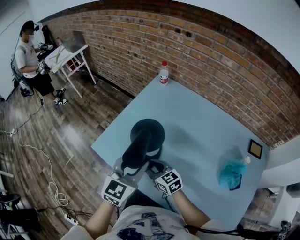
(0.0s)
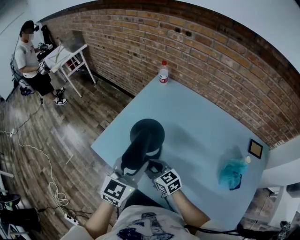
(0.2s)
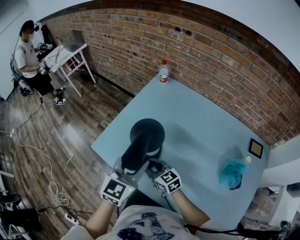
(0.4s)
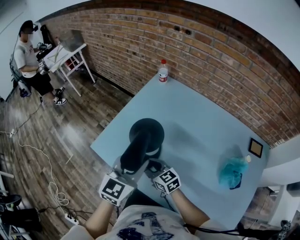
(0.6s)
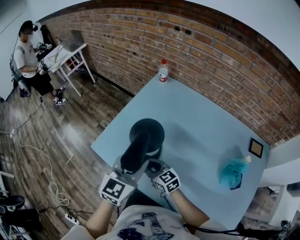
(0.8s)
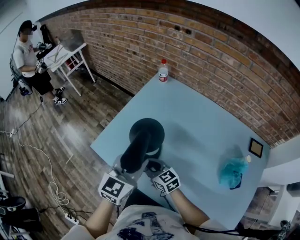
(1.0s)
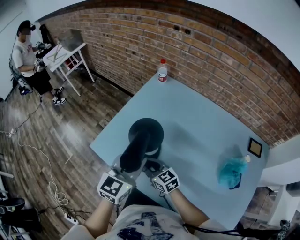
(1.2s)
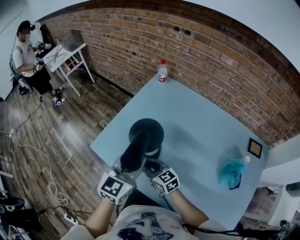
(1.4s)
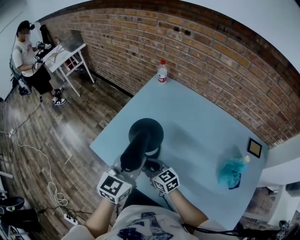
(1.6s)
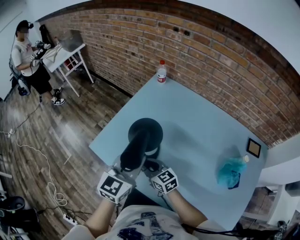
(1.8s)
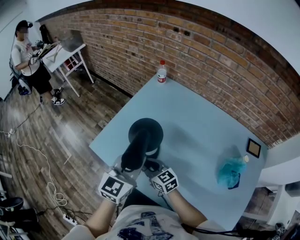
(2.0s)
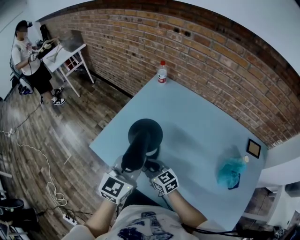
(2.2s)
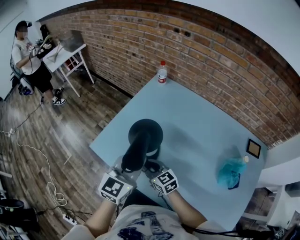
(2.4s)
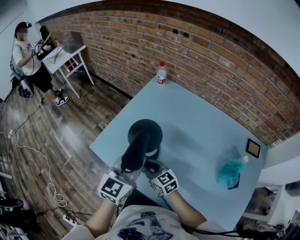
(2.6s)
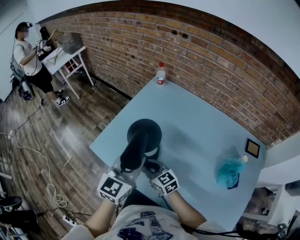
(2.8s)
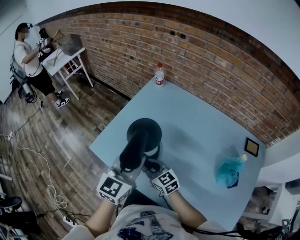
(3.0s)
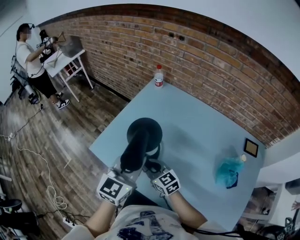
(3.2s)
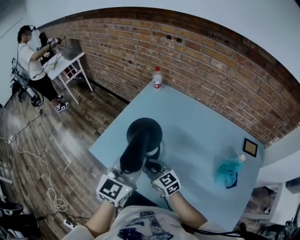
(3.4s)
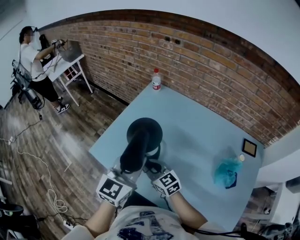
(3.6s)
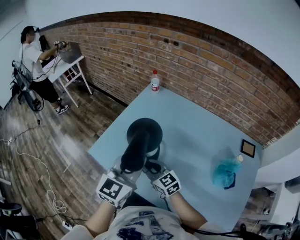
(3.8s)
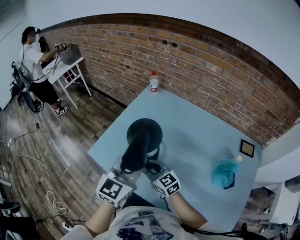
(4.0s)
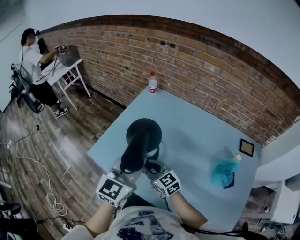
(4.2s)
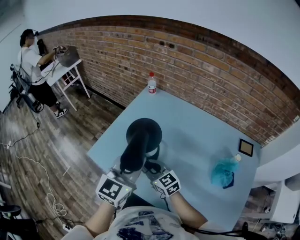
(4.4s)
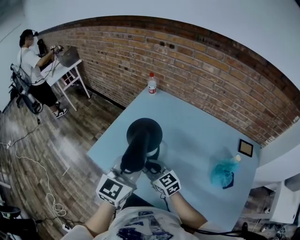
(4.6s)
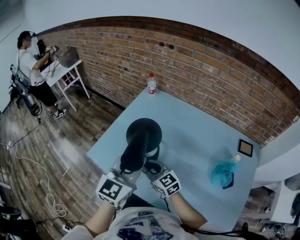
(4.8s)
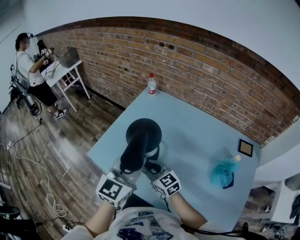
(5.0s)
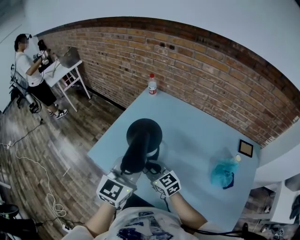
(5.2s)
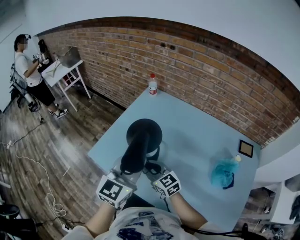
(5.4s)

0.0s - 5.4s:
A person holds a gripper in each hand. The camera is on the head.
0.0s - 2.8s: The grippers make only small movements.
2.8s - 4.0s: The right gripper goes about 5 cm upward; the left gripper moves some 5 cm.
4.0s - 5.4s: The grippers move only a little.

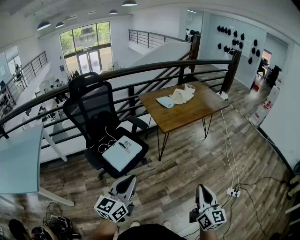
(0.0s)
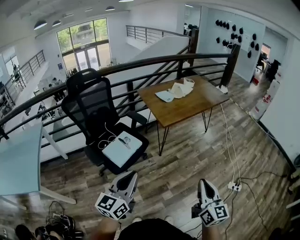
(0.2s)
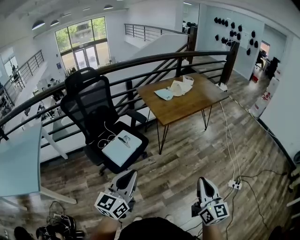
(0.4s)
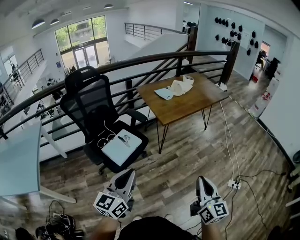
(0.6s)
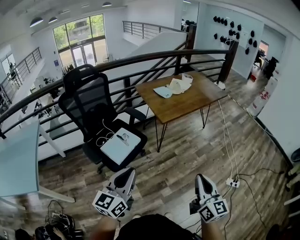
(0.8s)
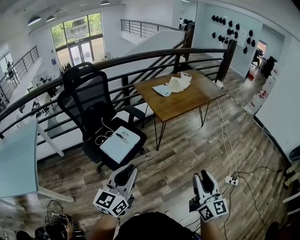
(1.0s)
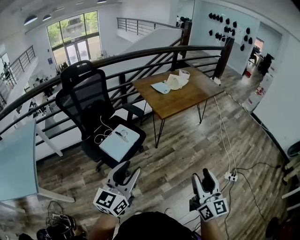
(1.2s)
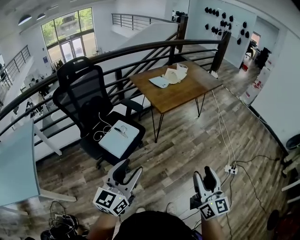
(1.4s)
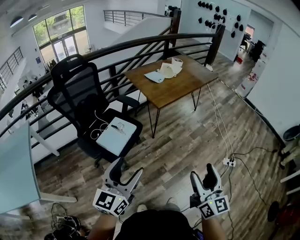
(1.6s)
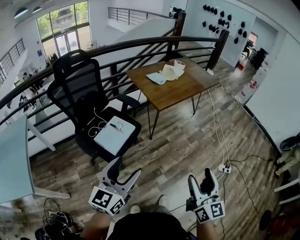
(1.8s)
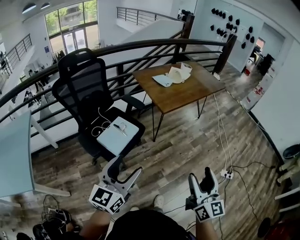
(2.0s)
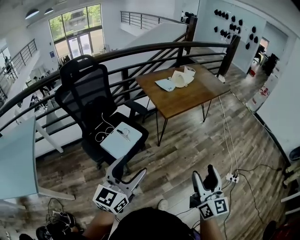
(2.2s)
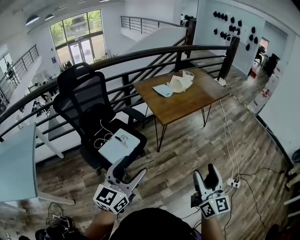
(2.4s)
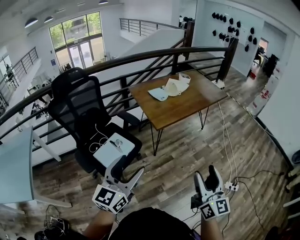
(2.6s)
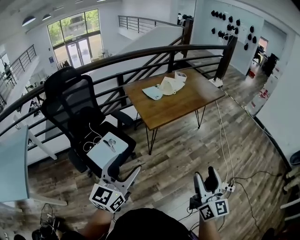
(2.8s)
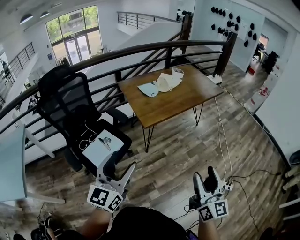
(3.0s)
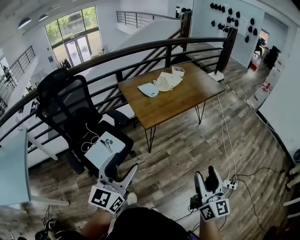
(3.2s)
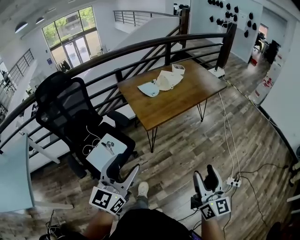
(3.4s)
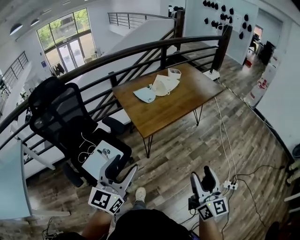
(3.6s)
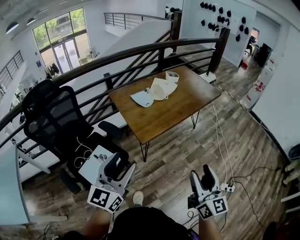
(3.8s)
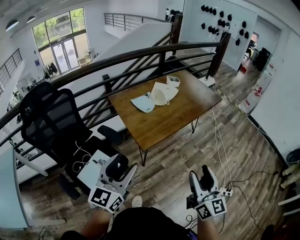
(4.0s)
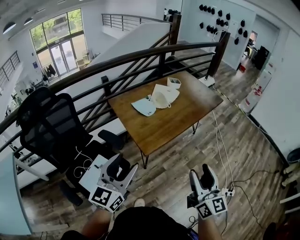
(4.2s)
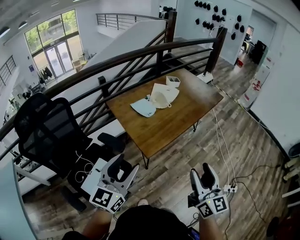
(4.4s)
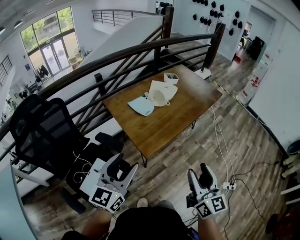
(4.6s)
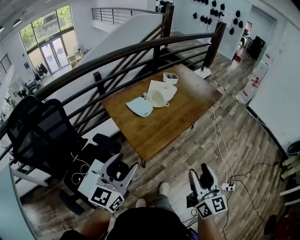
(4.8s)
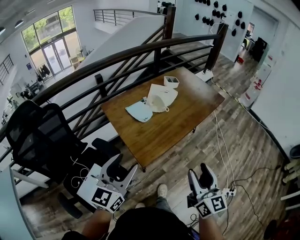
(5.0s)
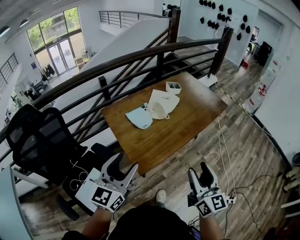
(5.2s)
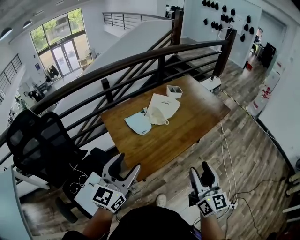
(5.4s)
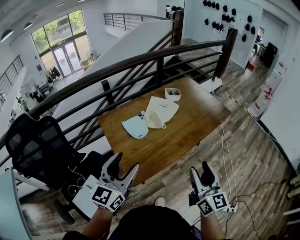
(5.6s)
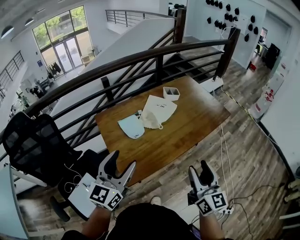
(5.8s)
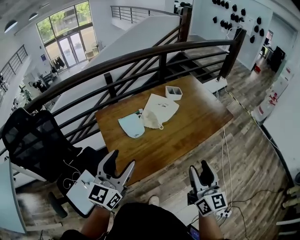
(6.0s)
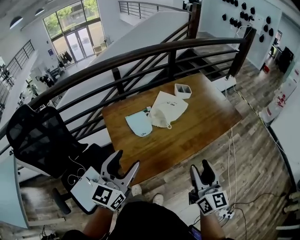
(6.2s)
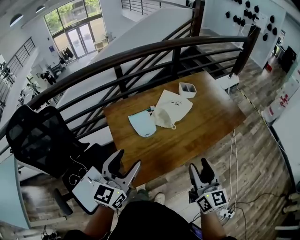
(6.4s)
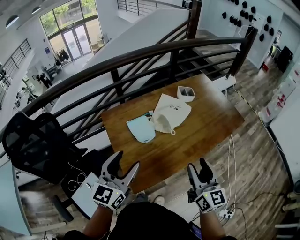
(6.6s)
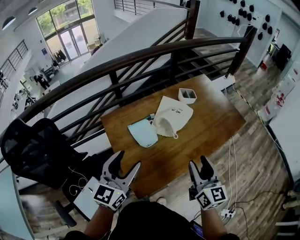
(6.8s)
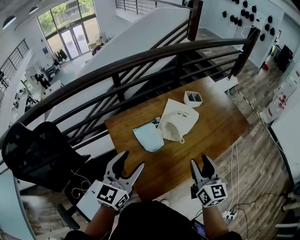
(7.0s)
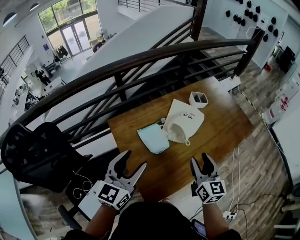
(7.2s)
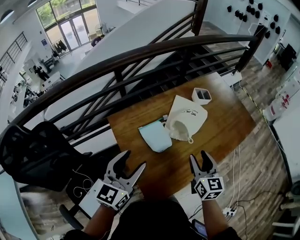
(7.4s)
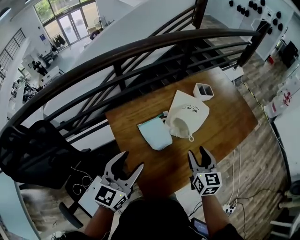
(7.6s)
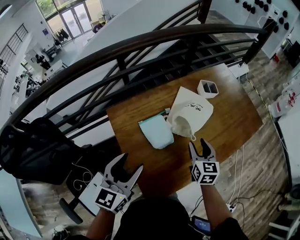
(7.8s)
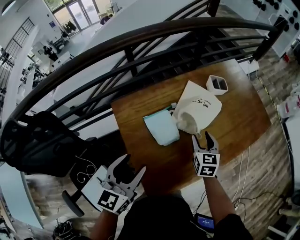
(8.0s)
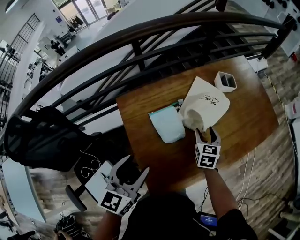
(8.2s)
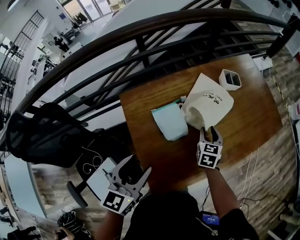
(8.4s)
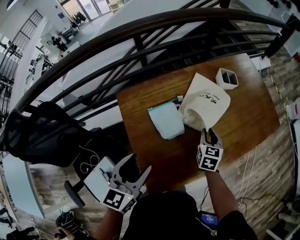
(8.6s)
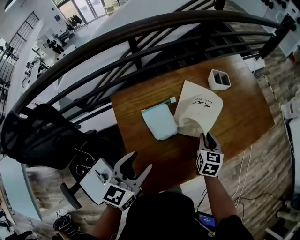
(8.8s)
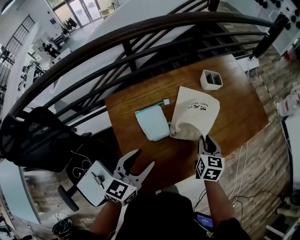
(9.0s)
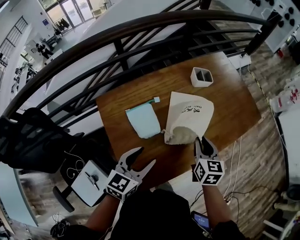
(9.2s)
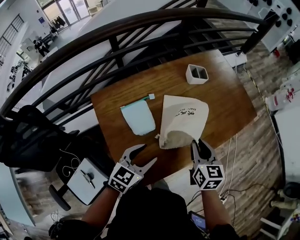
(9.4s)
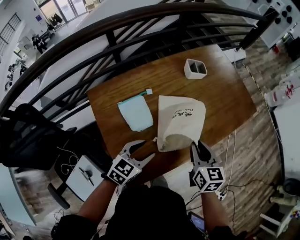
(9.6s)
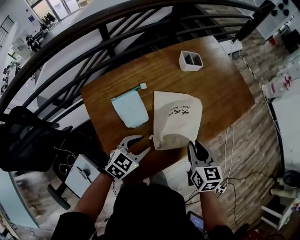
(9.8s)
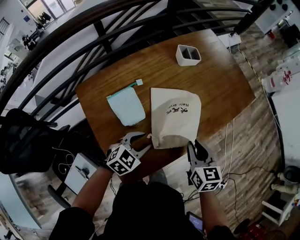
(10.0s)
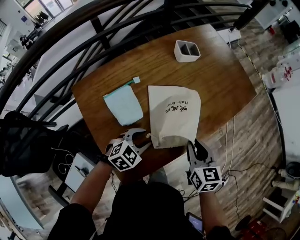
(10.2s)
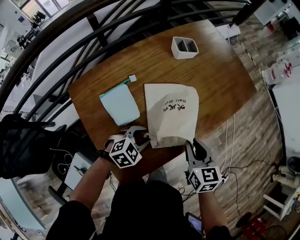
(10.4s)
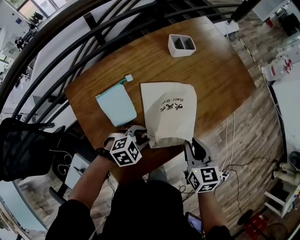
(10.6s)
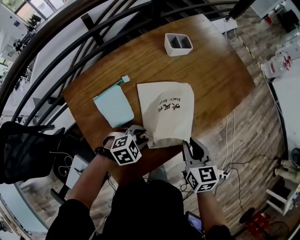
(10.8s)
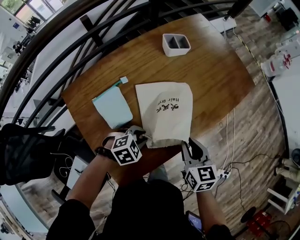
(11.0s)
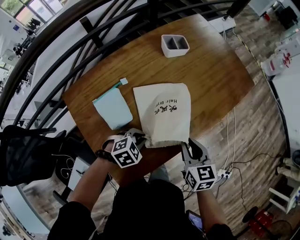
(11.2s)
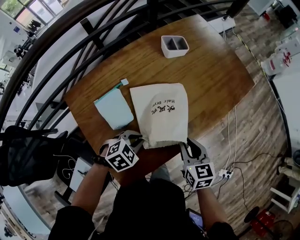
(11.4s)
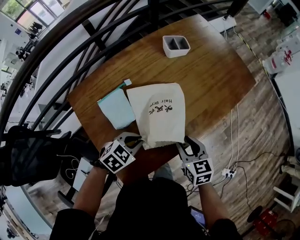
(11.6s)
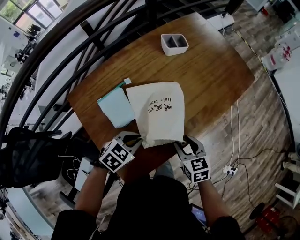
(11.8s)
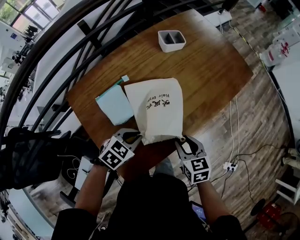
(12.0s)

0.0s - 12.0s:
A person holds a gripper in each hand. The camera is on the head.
0.0s - 1.6s: Both grippers move to the left, some 5 cm. The right gripper opens its fingers, while the left gripper opens its fingers.
1.6s - 3.0s: The grippers both shift forward and to the right by about 25 cm.
3.0s - 4.4s: The left gripper goes about 25 cm forward; the right gripper moves forward and to the left, some 25 cm.
4.4s - 6.0s: Both grippers move forward and to the right, about 25 cm.
6.0s - 7.6s: Both grippers travel together forward, to the left and downward, roughly 25 cm. The right gripper turns by about 20 degrees.
7.6s - 9.0s: The right gripper heads to the right, downward and forward, covering about 10 cm, and closes up. Meanwhile the left gripper goes roughly 10 cm to the right and downward.
9.0s - 10.4s: The right gripper goes some 10 cm backward and to the right; the left gripper travels downward and to the right by about 20 cm, and tips its fingers downward by approximately 30 degrees.
10.4s - 12.0s: The right gripper is displaced downward by approximately 5 cm.

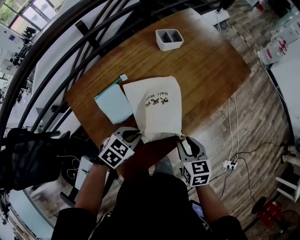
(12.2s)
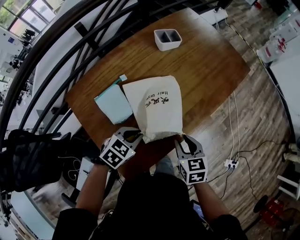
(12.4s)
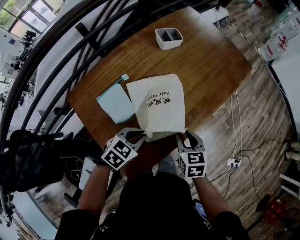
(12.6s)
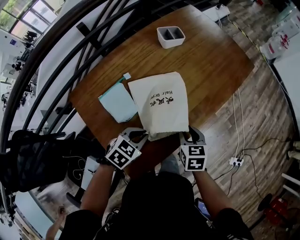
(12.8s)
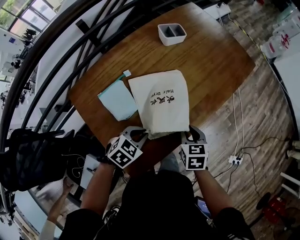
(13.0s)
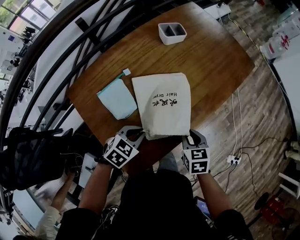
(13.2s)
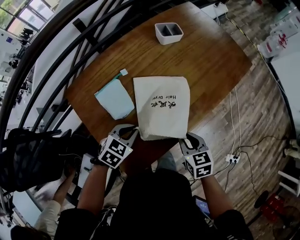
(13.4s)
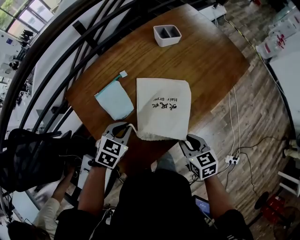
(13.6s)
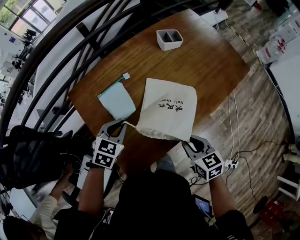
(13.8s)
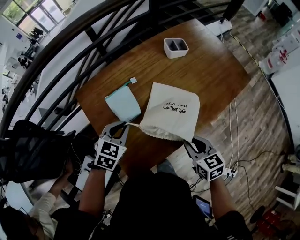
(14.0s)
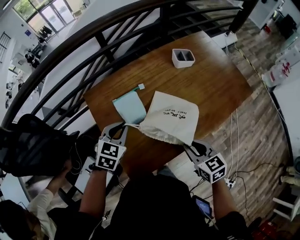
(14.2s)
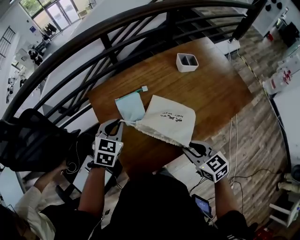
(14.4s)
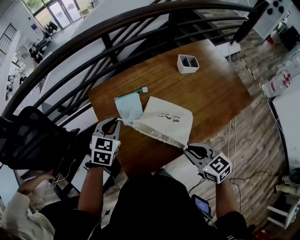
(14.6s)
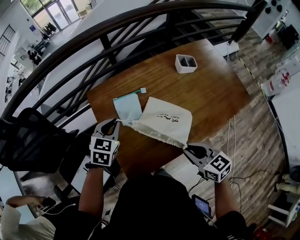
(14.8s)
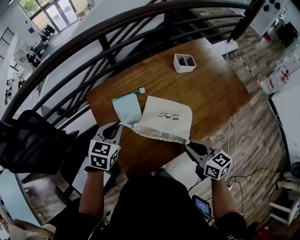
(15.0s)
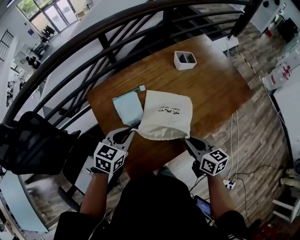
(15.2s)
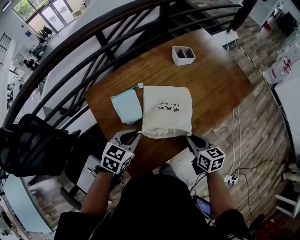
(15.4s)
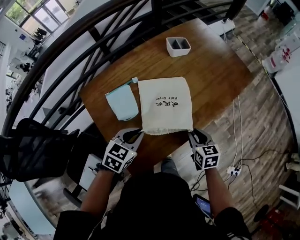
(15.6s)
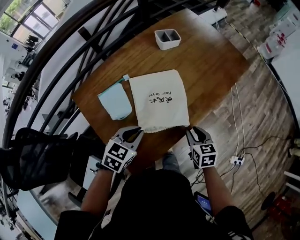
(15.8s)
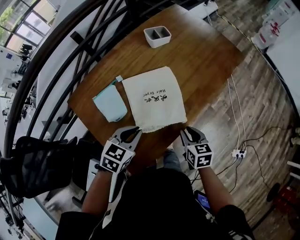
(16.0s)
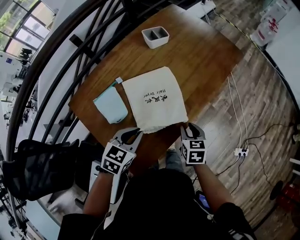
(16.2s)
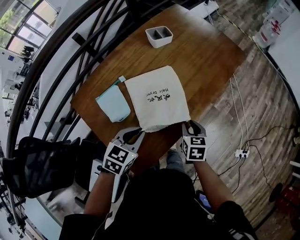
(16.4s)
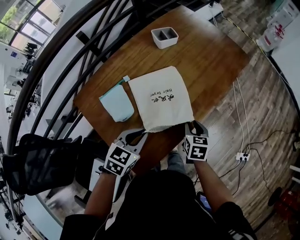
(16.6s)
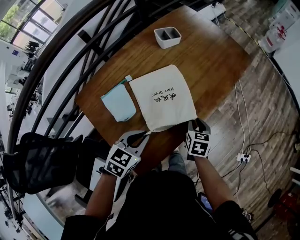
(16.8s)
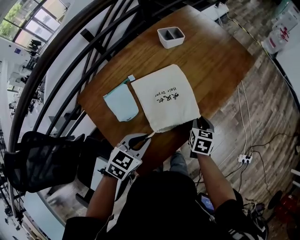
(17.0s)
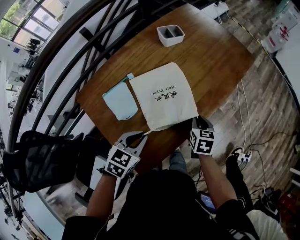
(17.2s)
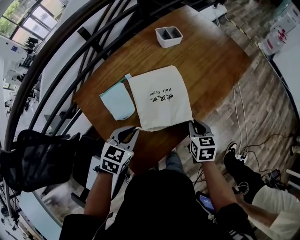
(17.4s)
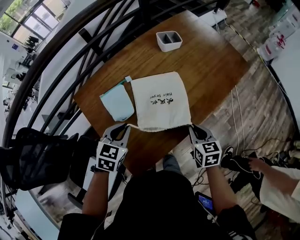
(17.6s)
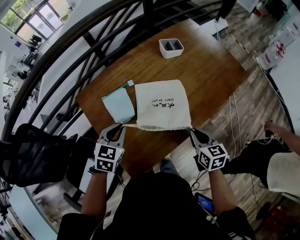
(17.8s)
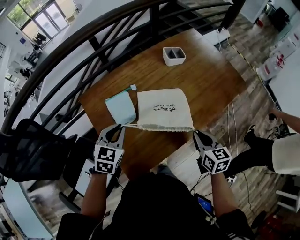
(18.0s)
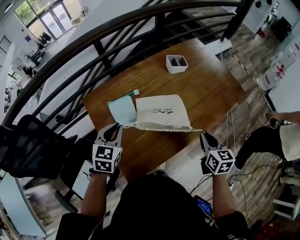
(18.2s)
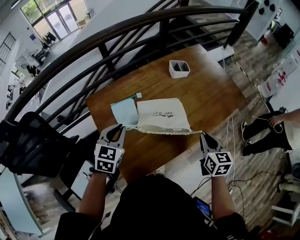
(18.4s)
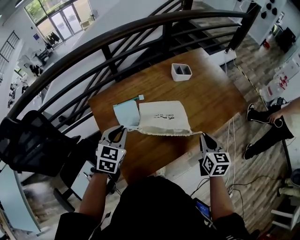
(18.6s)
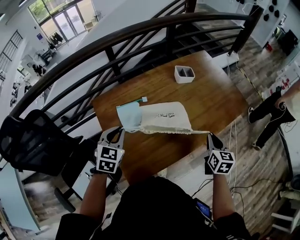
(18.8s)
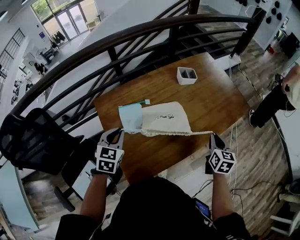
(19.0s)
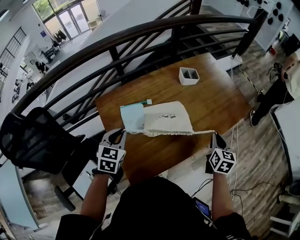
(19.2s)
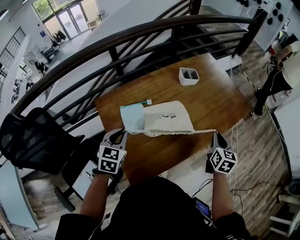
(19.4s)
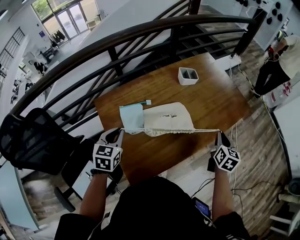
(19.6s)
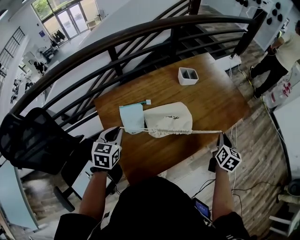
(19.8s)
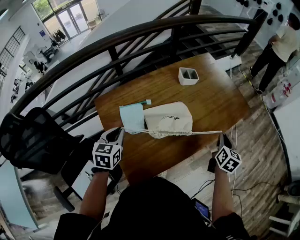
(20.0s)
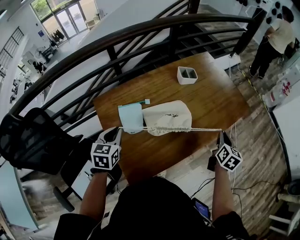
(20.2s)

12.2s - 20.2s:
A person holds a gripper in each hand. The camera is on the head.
12.2s - 13.8s: The left gripper changes place by about 10 cm, and turns by about 20 degrees.
13.8s - 15.4s: The right gripper goes upward and returns, roughly 10 cm each way.
15.4s - 17.0s: The right gripper heads downward, covering roughly 5 cm, and rotates approximately 40 degrees. The left gripper changes place by about 5 cm.
17.0s - 18.6s: The left gripper moves about 15 cm, and changes its angle by approximately 40 degrees. The right gripper travels upward by some 15 cm, and swivels roughly 30 degrees.
18.6s - 20.2s: The right gripper travels to the right by about 10 cm, and changes its angle by some 20 degrees, while the left gripper shifts roughly 5 cm to the left.
